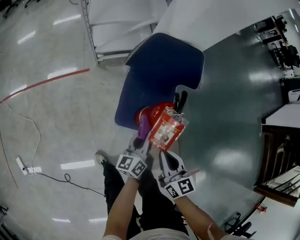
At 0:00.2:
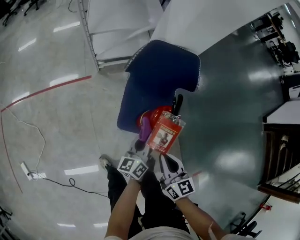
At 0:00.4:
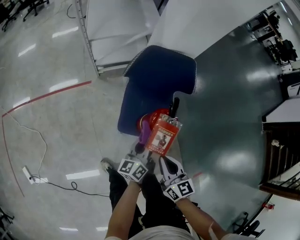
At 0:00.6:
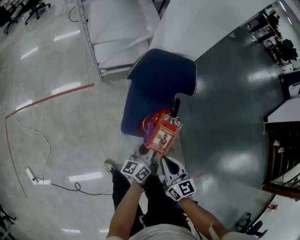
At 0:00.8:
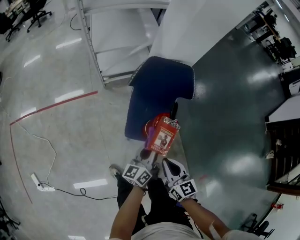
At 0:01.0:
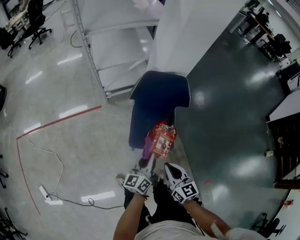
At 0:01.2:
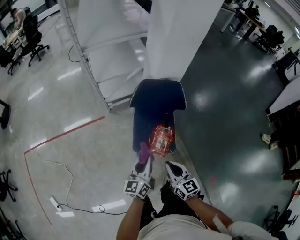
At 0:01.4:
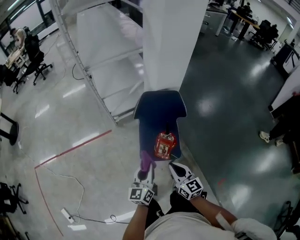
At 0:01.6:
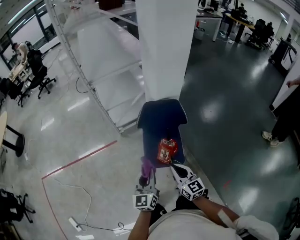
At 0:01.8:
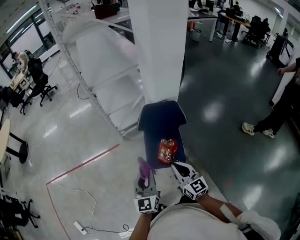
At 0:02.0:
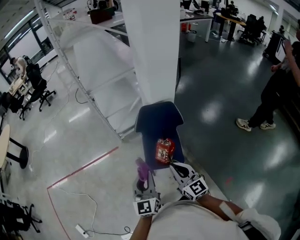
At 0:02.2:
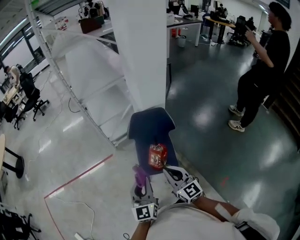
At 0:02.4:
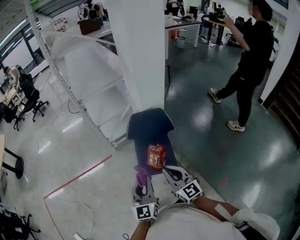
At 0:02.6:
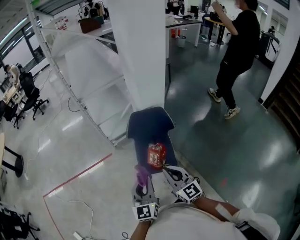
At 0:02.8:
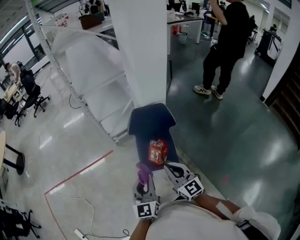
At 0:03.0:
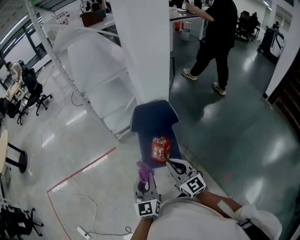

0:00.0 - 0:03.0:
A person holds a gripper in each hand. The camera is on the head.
0:00.0 - 0:01.6: The left gripper is displaced upward by roughly 25 cm, and turns by roughly 40 degrees; the right gripper goes roughly 15 cm upward.
0:01.6 - 0:03.0: The left gripper heads upward and backward, covering roughly 10 cm, while the right gripper shifts roughly 10 cm upward.

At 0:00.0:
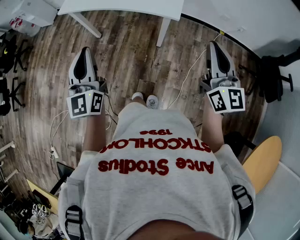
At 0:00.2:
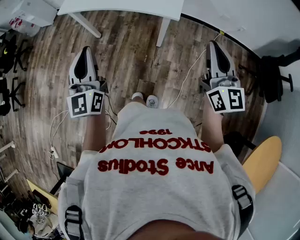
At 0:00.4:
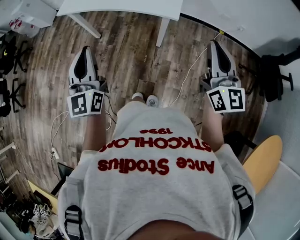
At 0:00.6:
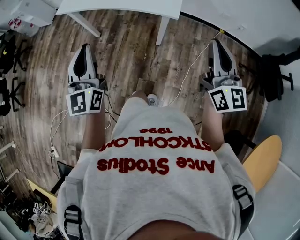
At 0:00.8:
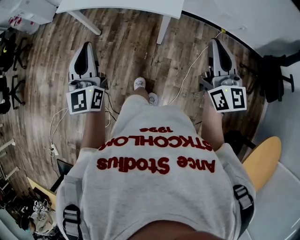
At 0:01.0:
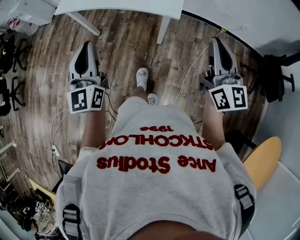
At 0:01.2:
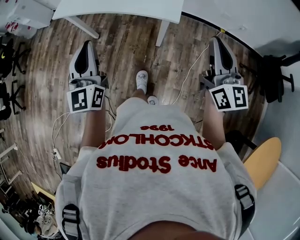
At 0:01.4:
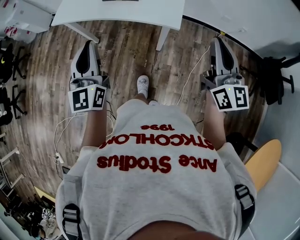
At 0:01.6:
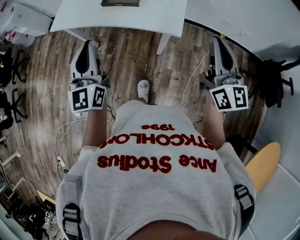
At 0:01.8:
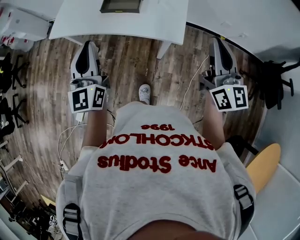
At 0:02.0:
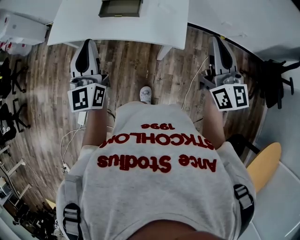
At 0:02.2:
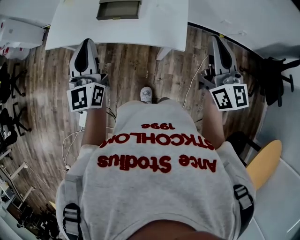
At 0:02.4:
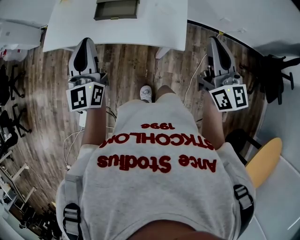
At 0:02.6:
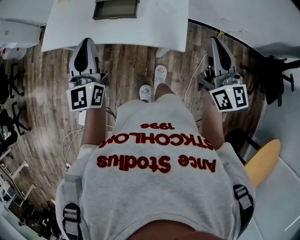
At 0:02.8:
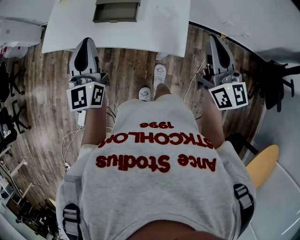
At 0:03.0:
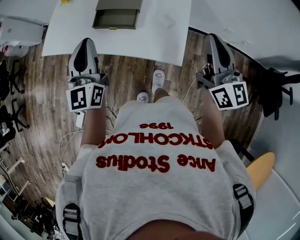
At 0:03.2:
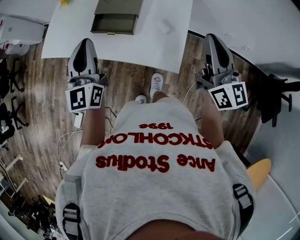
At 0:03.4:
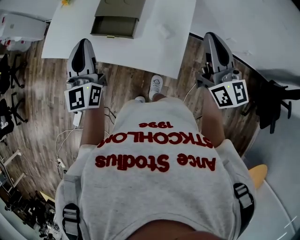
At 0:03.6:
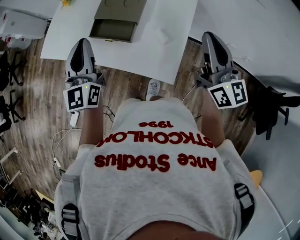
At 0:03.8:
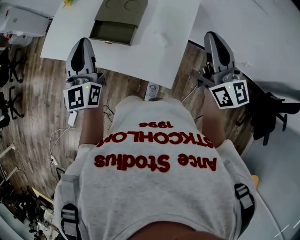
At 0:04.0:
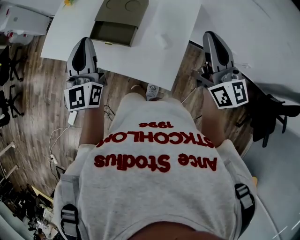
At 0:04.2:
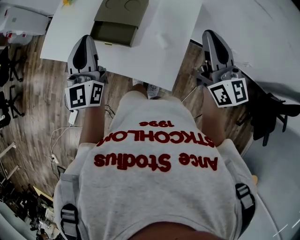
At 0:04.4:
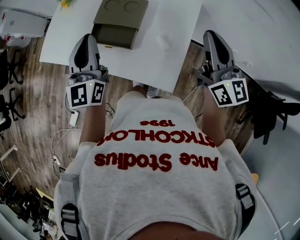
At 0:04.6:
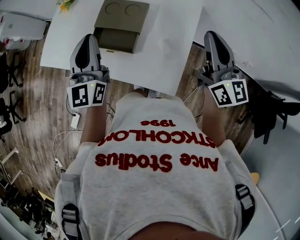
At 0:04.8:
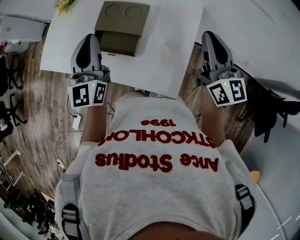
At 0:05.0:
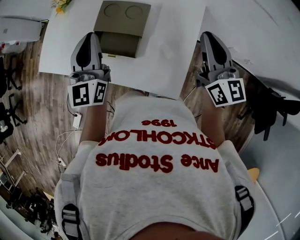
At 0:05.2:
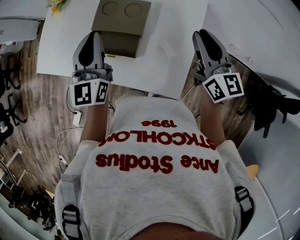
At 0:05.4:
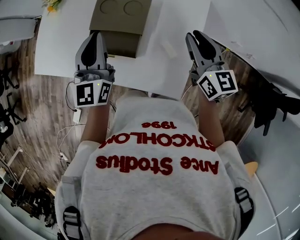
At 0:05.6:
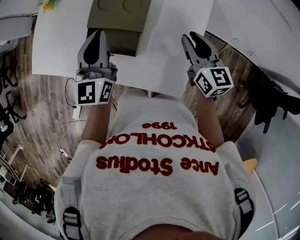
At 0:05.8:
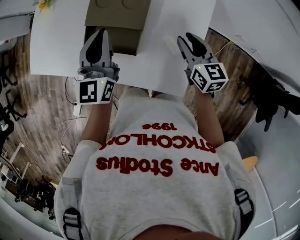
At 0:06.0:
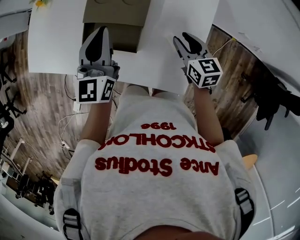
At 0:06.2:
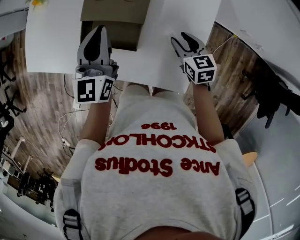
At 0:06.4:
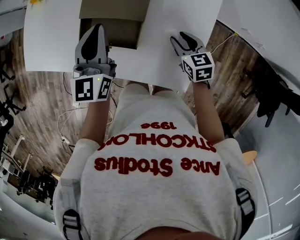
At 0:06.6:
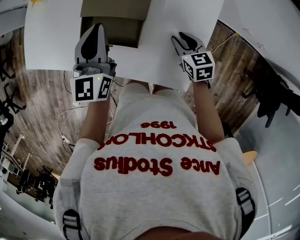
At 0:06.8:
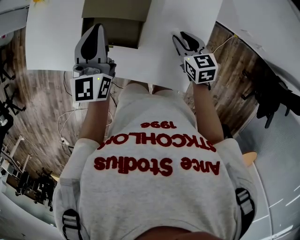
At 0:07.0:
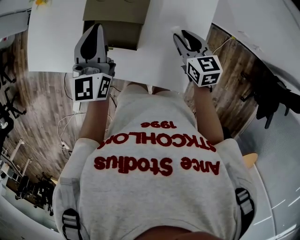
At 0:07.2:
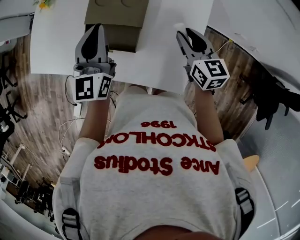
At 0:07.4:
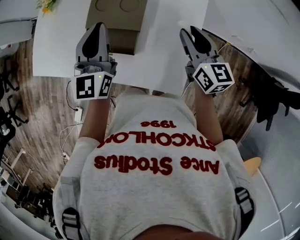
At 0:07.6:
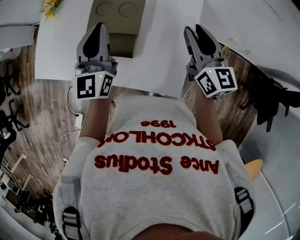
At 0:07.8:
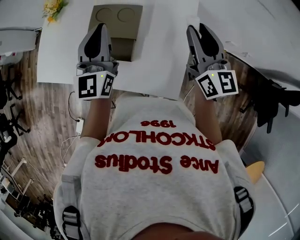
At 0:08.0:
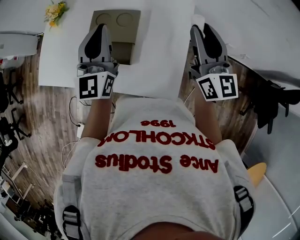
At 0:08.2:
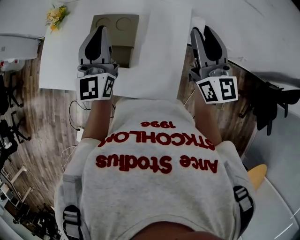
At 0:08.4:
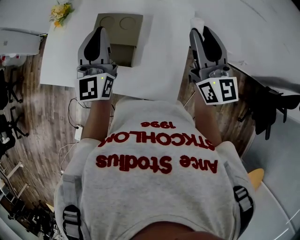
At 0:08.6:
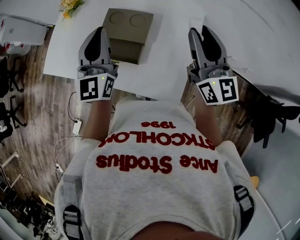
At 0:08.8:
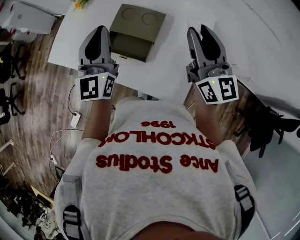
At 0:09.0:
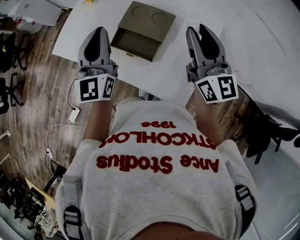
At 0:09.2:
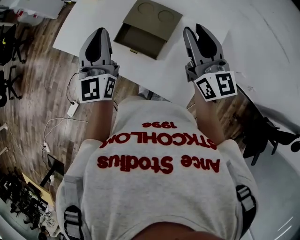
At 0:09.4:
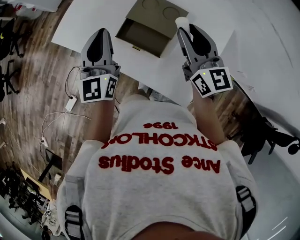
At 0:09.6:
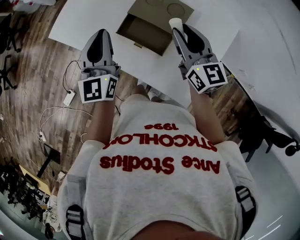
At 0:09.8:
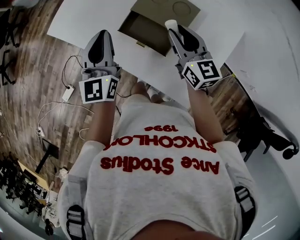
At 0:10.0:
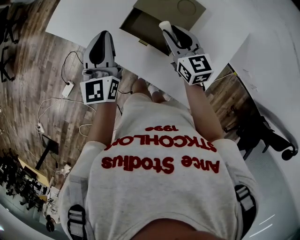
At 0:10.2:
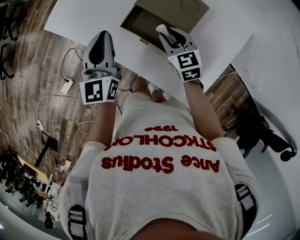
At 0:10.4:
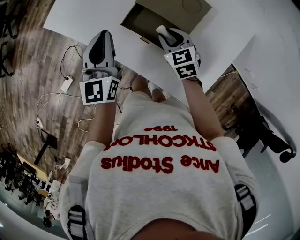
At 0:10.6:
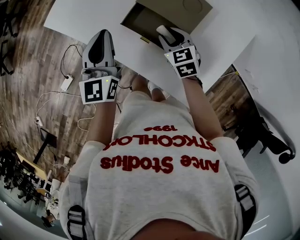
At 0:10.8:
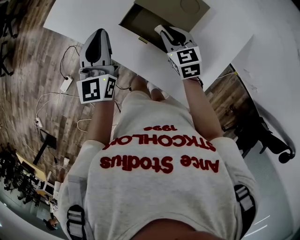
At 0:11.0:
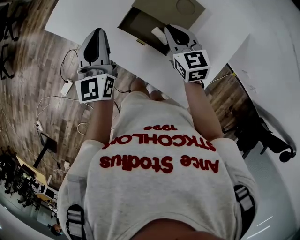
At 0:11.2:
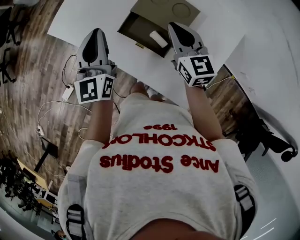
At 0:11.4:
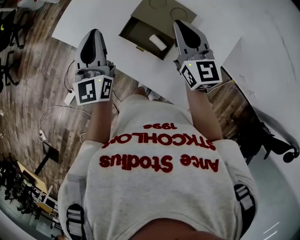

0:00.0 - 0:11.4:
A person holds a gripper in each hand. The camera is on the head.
0:00.0 - 0:01.4: Both grippers travel together forward, some 10 cm.
0:01.4 - 0:02.8: The grippers both shift forward by roughly 20 cm.
0:02.8 - 0:04.2: The left gripper travels forward and to the right by about 15 cm; the right gripper travels forward by some 20 cm.
0:04.2 - 0:05.6: The left gripper heads forward and downward, covering roughly 15 cm; the right gripper travels downward and forward by some 20 cm, changes its angle by about 30 degrees, and opens its fingers.
0:05.6 - 0:07.2: The right gripper goes downward and returns, about 15 cm each way.
0:07.2 - 0:08.6: The right gripper is displaced upward by about 20 cm, and angles its fingers upward, by about 40 degrees, while the left gripper is displaced upward by some 10 cm.
0:08.6 - 0:10.0: The left gripper goes some 20 cm downward and to the left, and swivels some 20 degrees; the right gripper travels downward, to the left and forward by about 30 cm, and tilts its fingers roughly 30 degrees downward.
0:10.0 - 0:11.4: The right gripper goes about 15 cm upward, and closes; the left gripper travels upward by some 5 cm.

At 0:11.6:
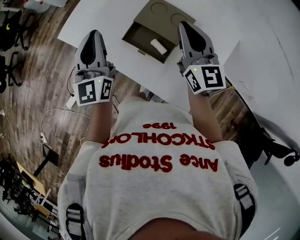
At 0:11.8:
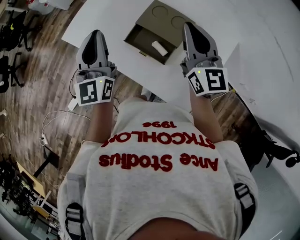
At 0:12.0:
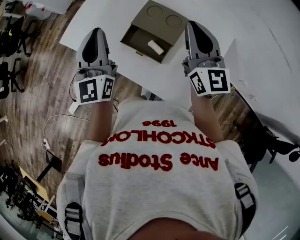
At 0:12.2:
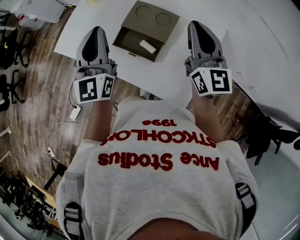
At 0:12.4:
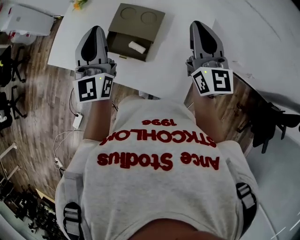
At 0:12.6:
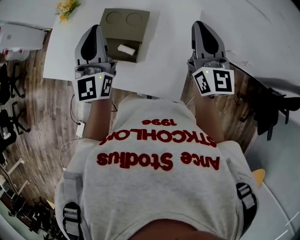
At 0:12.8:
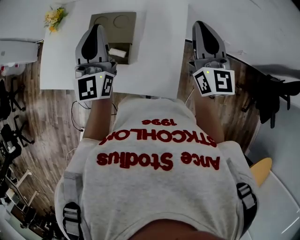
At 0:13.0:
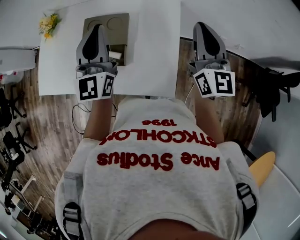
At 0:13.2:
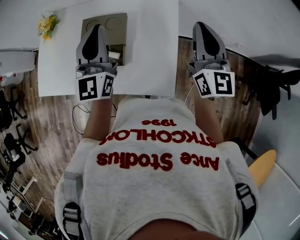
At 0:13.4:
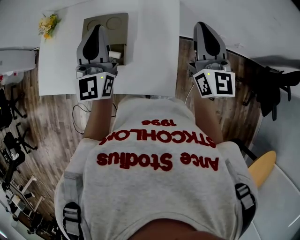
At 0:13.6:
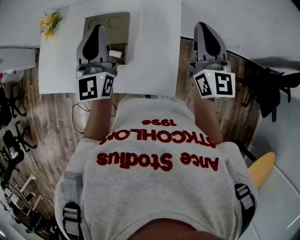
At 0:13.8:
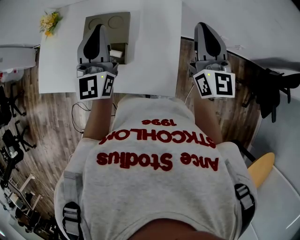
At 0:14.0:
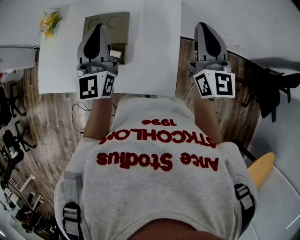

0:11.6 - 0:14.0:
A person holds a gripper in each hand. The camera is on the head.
0:11.6 - 0:12.8: The right gripper changes place by roughly 25 cm, and swivels some 30 degrees; the left gripper shifts by some 20 cm, and changes its angle by about 30 degrees.
0:12.8 - 0:14.0: The grippers move only a little.

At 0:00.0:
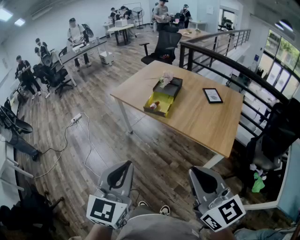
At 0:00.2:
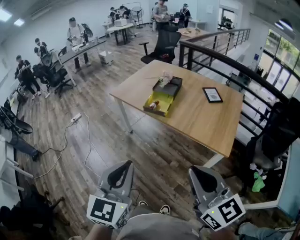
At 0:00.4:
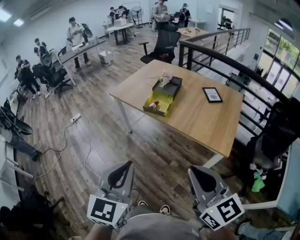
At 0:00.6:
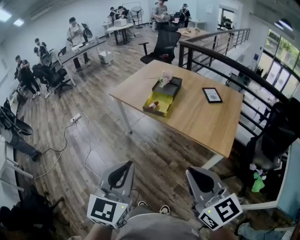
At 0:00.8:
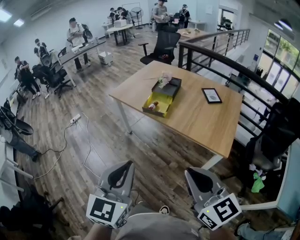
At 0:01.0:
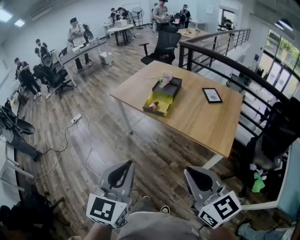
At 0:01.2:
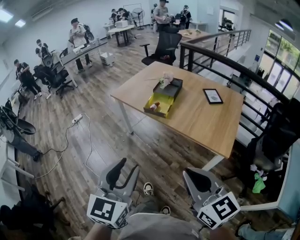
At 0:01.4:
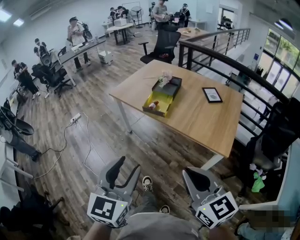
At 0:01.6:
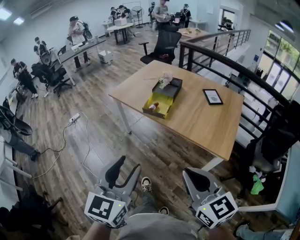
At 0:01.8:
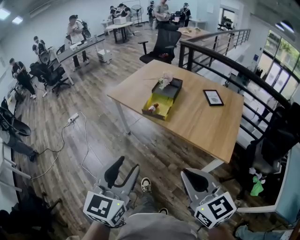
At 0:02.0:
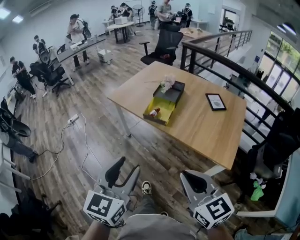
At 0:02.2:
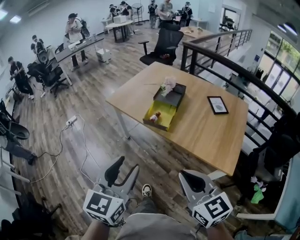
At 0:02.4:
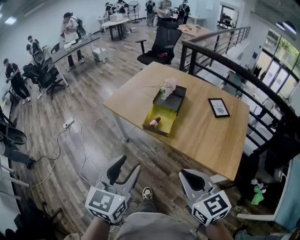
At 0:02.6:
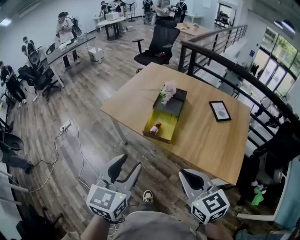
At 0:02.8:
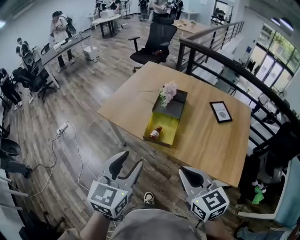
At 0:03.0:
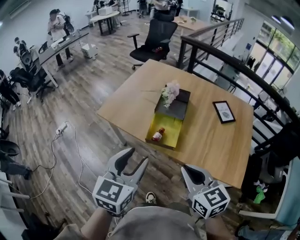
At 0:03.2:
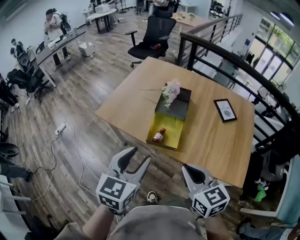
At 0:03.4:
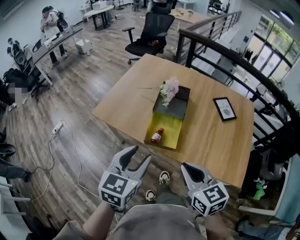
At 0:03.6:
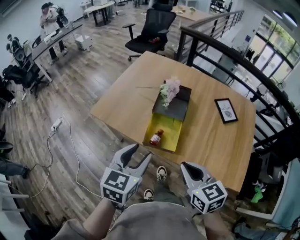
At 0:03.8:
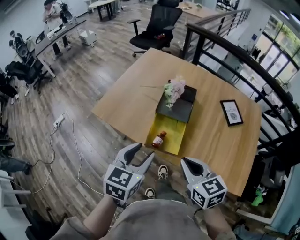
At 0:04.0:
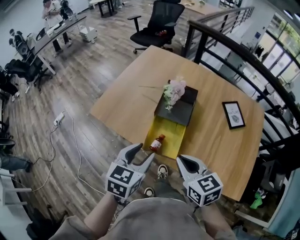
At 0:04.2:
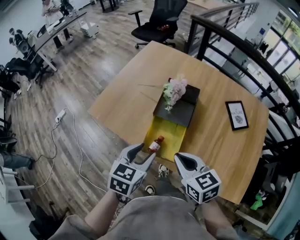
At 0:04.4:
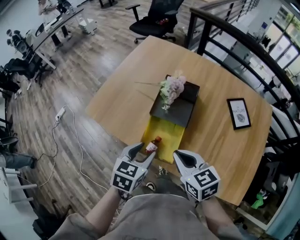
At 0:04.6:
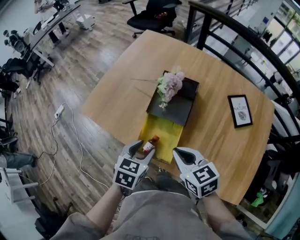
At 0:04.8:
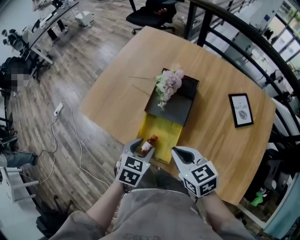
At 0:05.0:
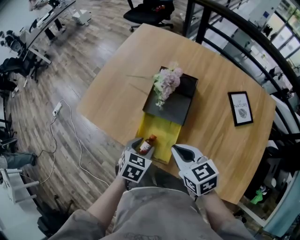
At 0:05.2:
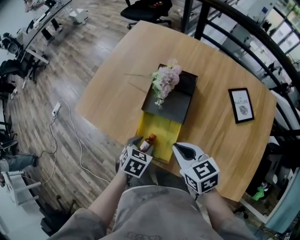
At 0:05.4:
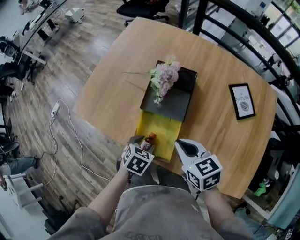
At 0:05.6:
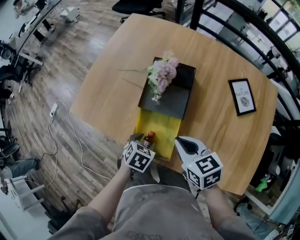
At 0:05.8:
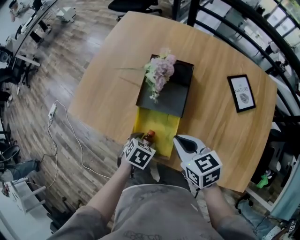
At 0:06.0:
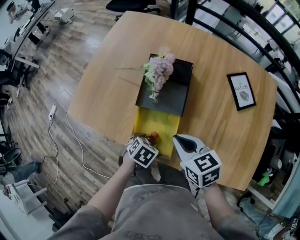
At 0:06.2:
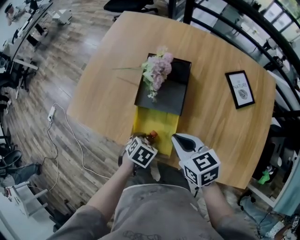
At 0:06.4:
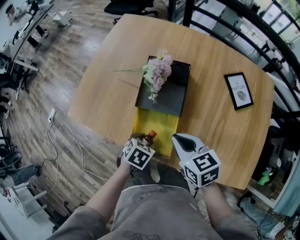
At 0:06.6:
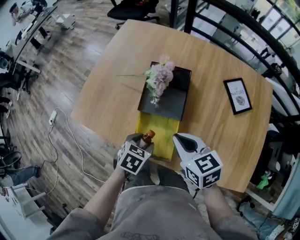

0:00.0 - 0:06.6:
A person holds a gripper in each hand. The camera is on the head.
0:00.0 - 0:01.6: The right gripper ends up about 5 cm from where it was; the left gripper opens up.
0:01.6 - 0:03.2: The grippers both shift forward by about 40 cm.
0:03.2 - 0:05.0: The left gripper travels downward and forward by roughly 35 cm, and tilts its fingers some 30 degrees downward. The right gripper shifts about 25 cm forward and downward, and swivels about 20 degrees.
0:05.0 - 0:06.6: The left gripper travels downward and back again, roughly 10 cm each way.
